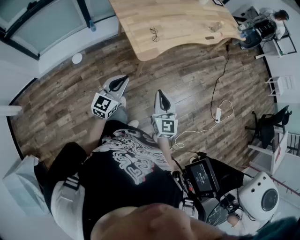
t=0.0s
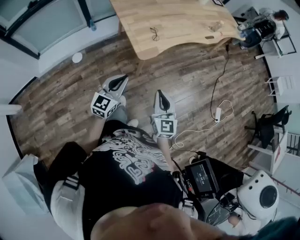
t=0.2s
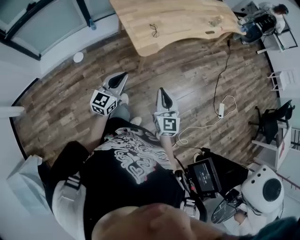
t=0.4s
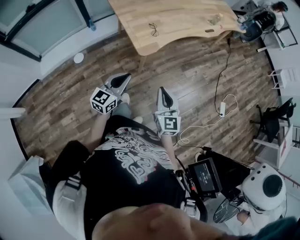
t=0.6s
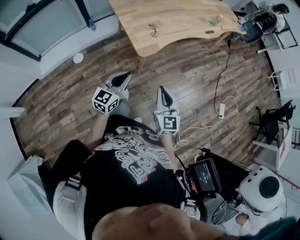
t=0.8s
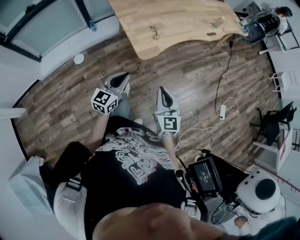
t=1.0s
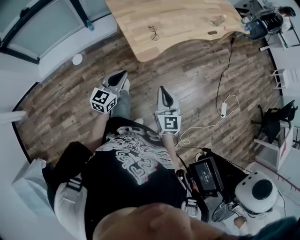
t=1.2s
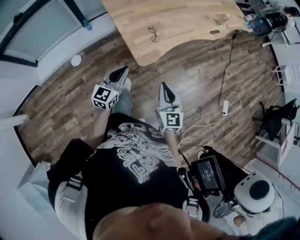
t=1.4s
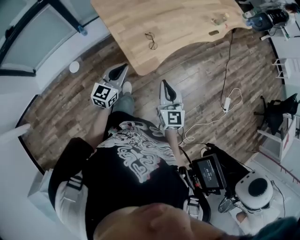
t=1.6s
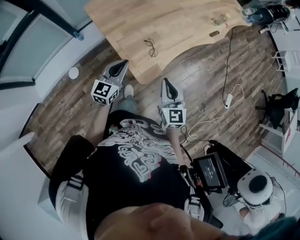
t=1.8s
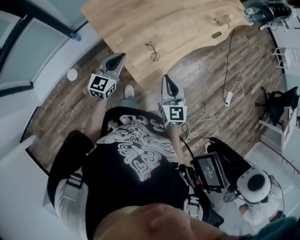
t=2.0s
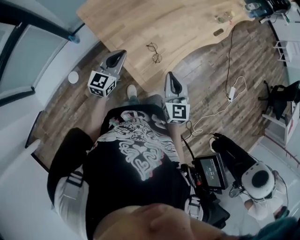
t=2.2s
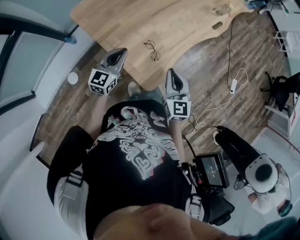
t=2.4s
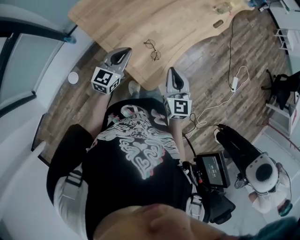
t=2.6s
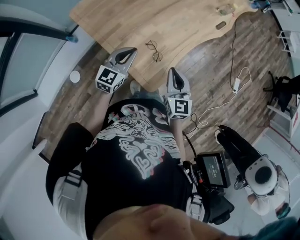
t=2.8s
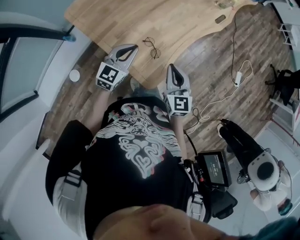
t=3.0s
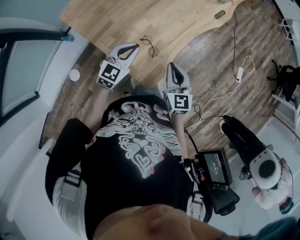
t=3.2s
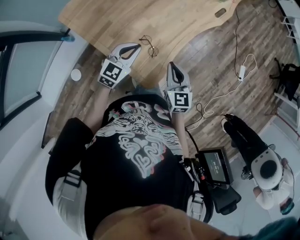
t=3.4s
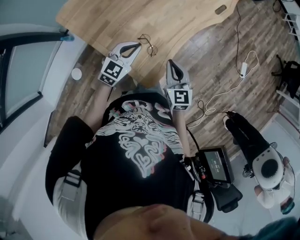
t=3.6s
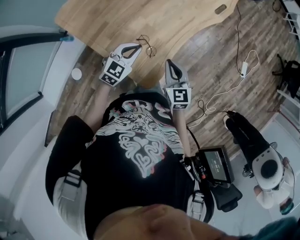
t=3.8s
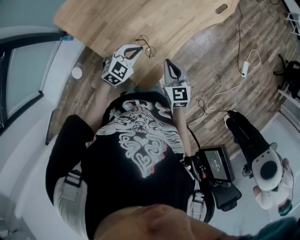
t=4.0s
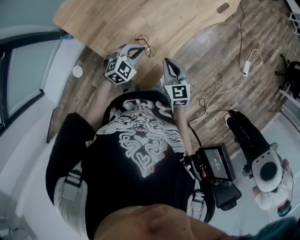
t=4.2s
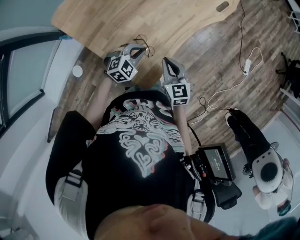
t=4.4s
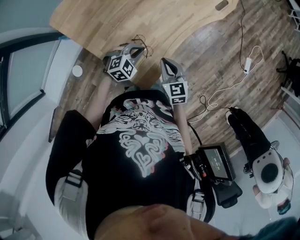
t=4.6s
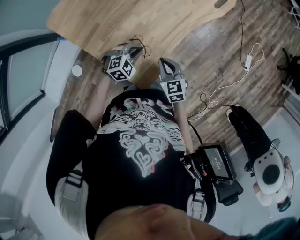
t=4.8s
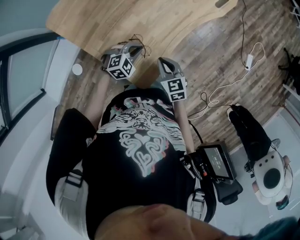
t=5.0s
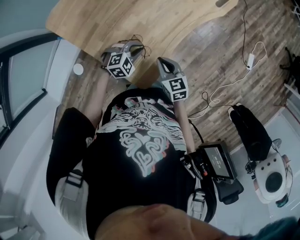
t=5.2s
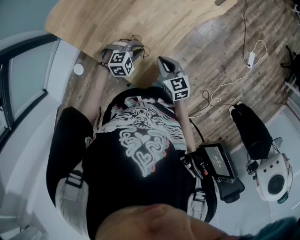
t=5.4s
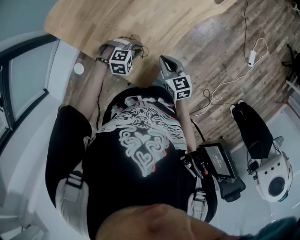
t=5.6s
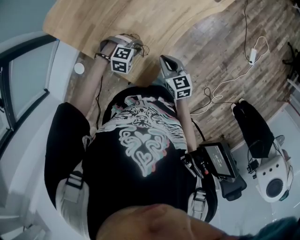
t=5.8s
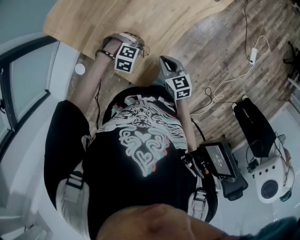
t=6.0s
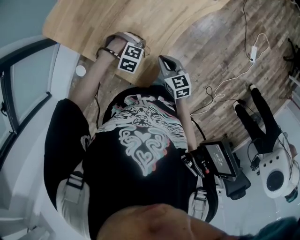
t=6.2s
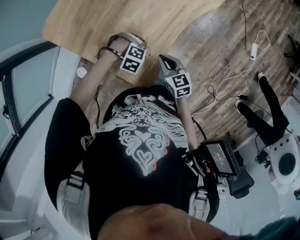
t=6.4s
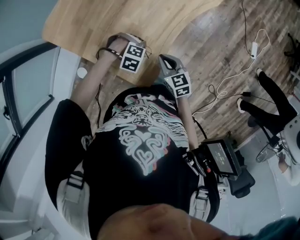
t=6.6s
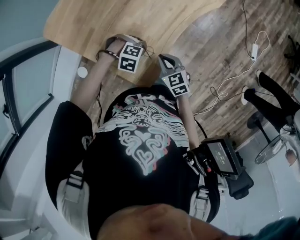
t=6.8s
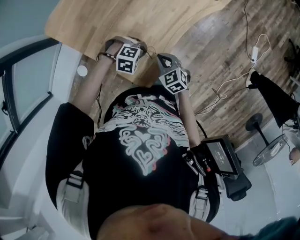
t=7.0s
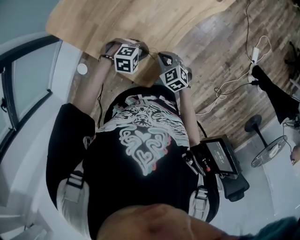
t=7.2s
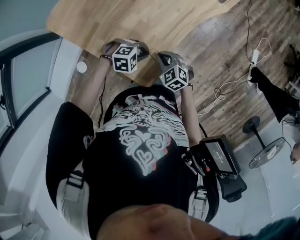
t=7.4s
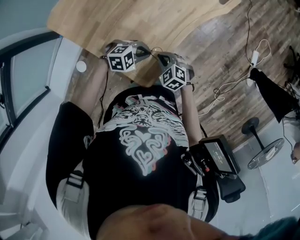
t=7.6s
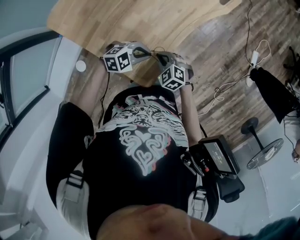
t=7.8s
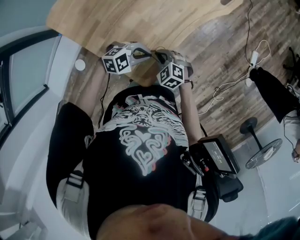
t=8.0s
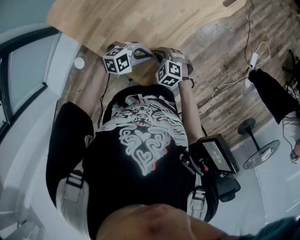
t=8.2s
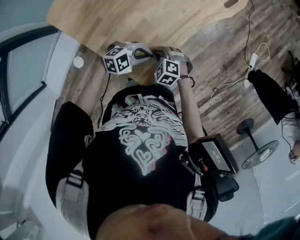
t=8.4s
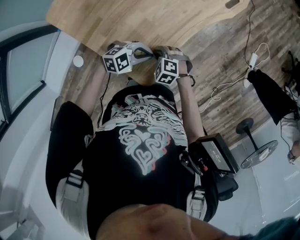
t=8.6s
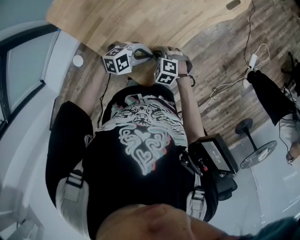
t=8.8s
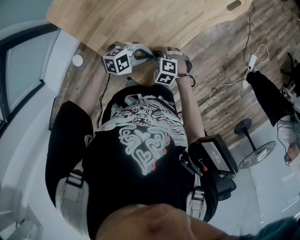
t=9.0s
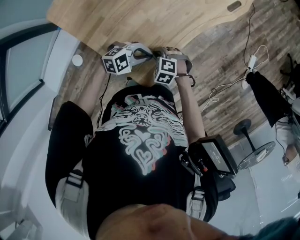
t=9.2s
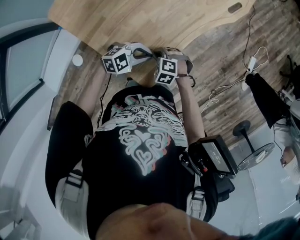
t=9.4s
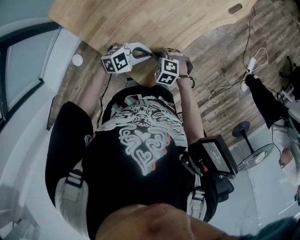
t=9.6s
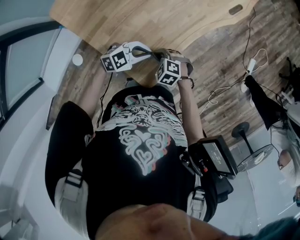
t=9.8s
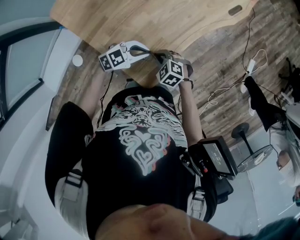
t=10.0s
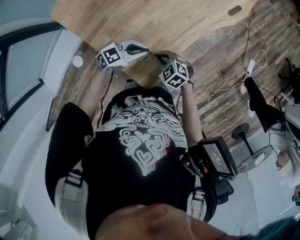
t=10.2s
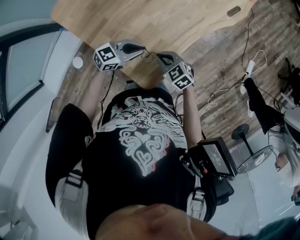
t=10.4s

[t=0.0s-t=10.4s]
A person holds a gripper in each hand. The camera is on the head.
t=0.0s to t=1.4s: The two grippers go approximately 15 cm forward.
t=1.4s to t=3.0s: Both grippers travel together forward, roughly 30 cm. The left gripper changes its angle by approximately 30 degrees.
t=3.0s to t=4.4s: The left gripper goes about 15 cm downward and to the right, and swivels about 40 degrees. Meanwhile the right gripper goes about 10 cm downward and forward.
t=4.4s to t=6.0s: The grippers both shift downward by about 10 cm. The left gripper rotates about 50 degrees.
t=6.0s to t=7.4s: The right gripper changes its angle by roughly 40 degrees, while the left gripper travels upward by roughly 5 cm, and swivels approximately 20 degrees.
t=7.4s to t=9.0s: The left gripper rotates roughly 20 degrees. The right gripper swivels approximately 30 degrees.
t=9.0s to t=10.4s: The right gripper shifts approximately 5 cm upward, and swivels approximately 30 degrees. The left gripper moves roughly 10 cm, and swivels approximately 40 degrees.

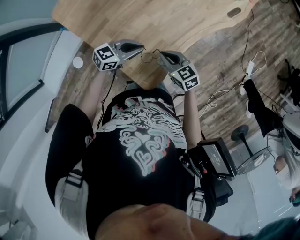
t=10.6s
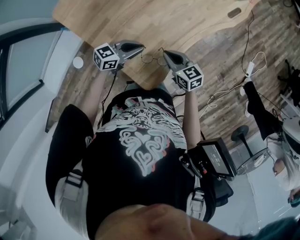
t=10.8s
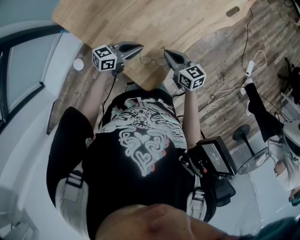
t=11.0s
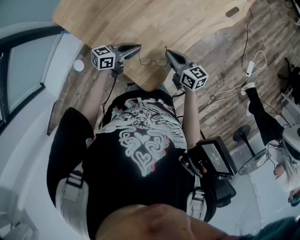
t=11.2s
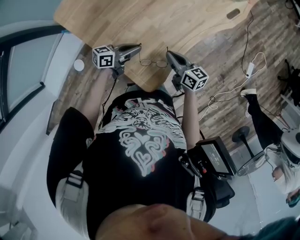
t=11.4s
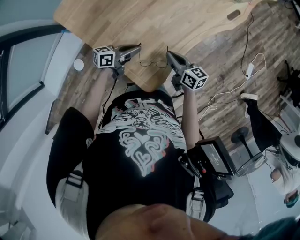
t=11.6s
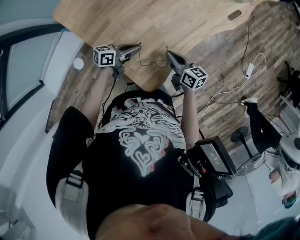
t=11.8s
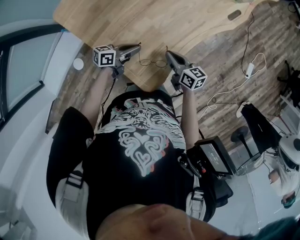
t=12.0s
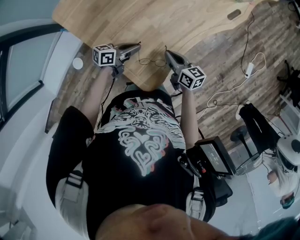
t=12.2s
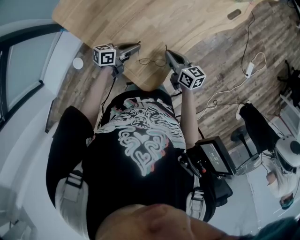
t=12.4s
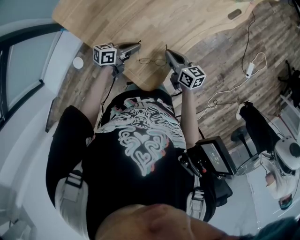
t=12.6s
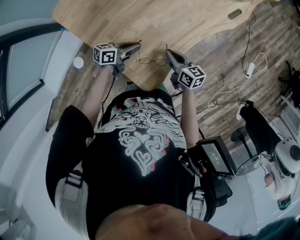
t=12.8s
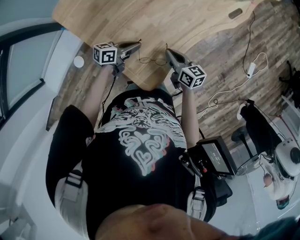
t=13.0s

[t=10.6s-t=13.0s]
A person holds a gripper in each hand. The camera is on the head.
t=10.6s to t=11.8s: The left gripper swivels about 30 degrees. The right gripper changes its angle by about 30 degrees.
t=11.8s to t=13.0s: The two grippers keep their place.

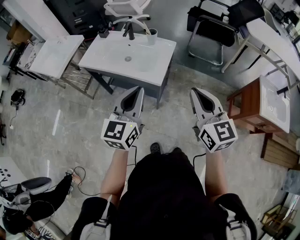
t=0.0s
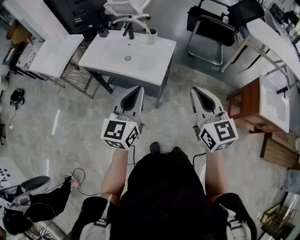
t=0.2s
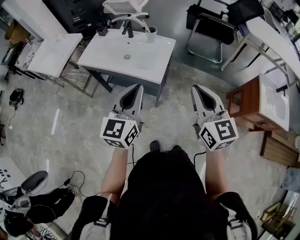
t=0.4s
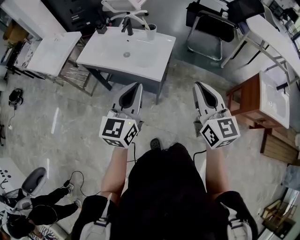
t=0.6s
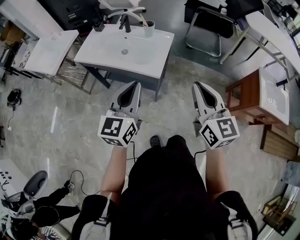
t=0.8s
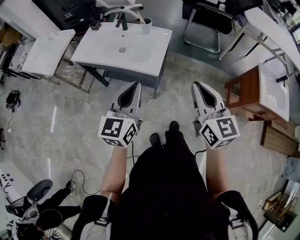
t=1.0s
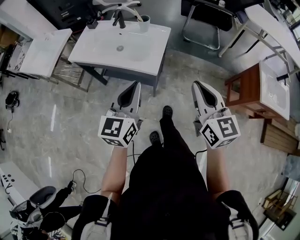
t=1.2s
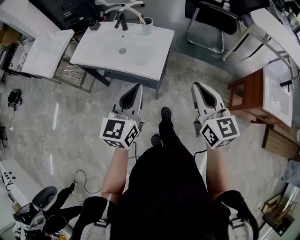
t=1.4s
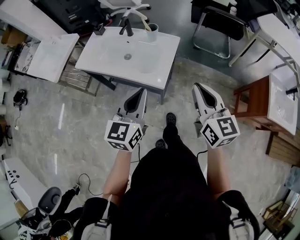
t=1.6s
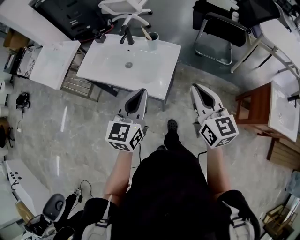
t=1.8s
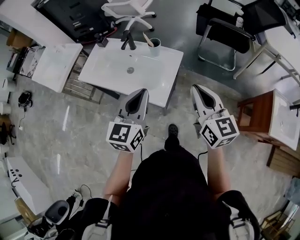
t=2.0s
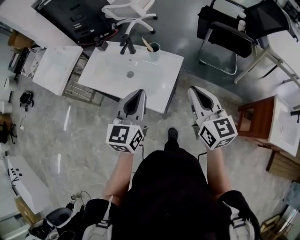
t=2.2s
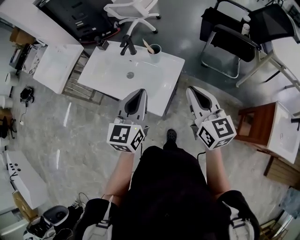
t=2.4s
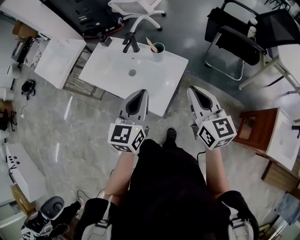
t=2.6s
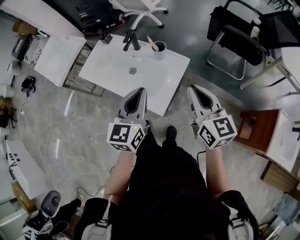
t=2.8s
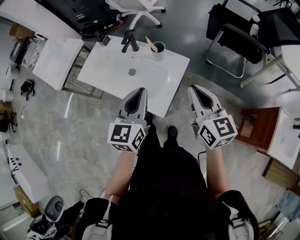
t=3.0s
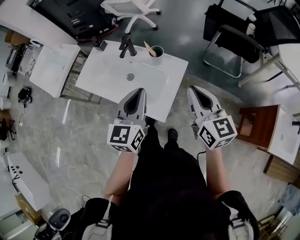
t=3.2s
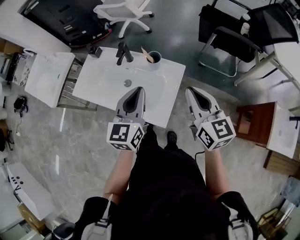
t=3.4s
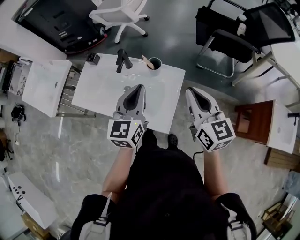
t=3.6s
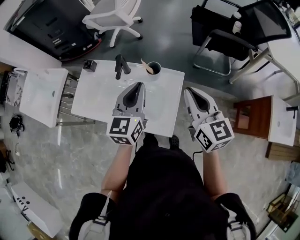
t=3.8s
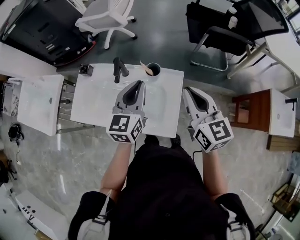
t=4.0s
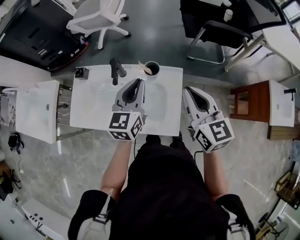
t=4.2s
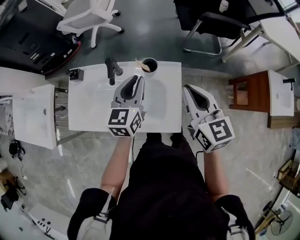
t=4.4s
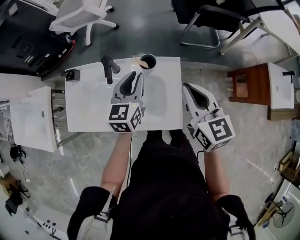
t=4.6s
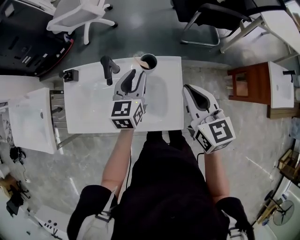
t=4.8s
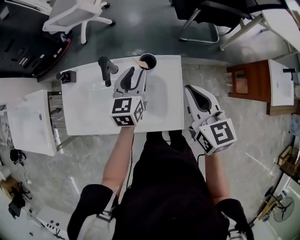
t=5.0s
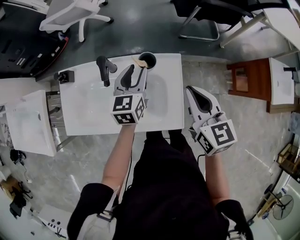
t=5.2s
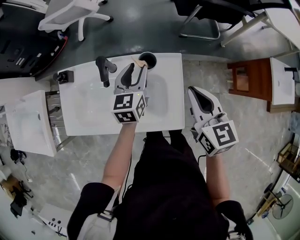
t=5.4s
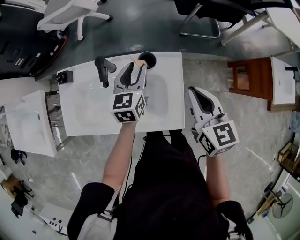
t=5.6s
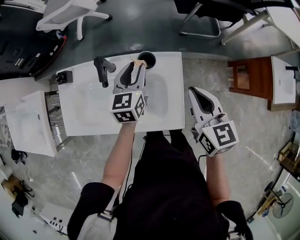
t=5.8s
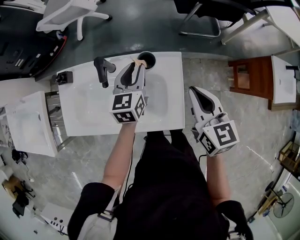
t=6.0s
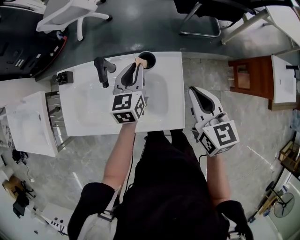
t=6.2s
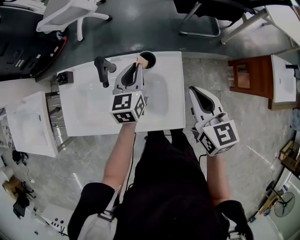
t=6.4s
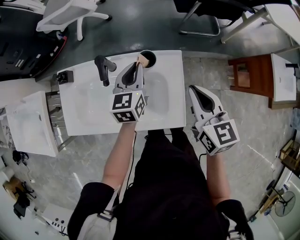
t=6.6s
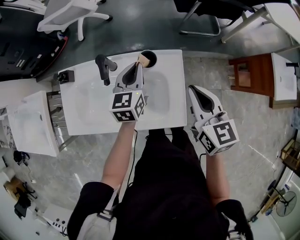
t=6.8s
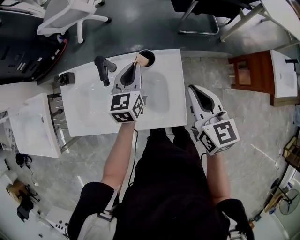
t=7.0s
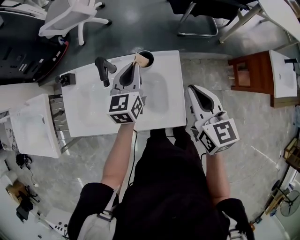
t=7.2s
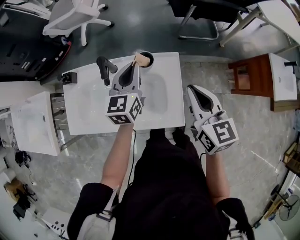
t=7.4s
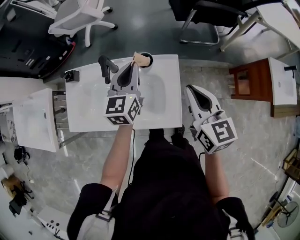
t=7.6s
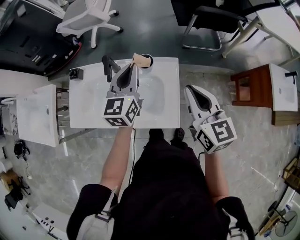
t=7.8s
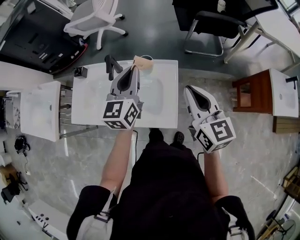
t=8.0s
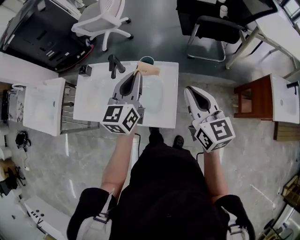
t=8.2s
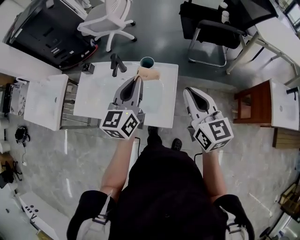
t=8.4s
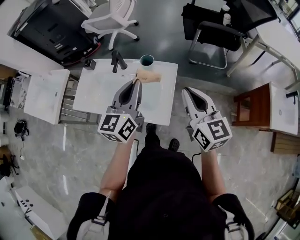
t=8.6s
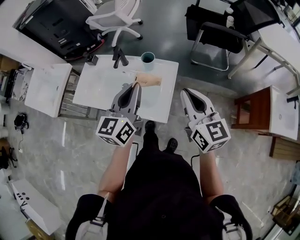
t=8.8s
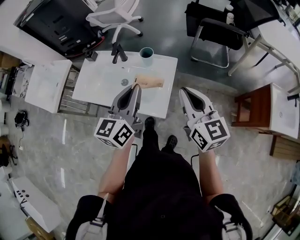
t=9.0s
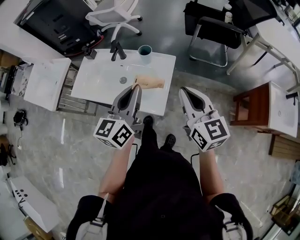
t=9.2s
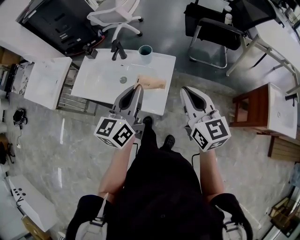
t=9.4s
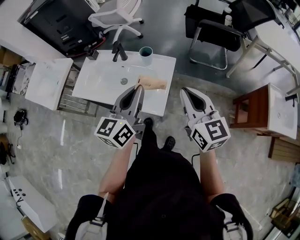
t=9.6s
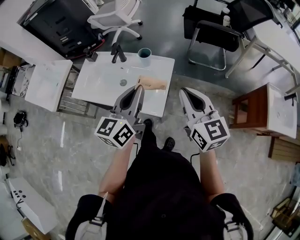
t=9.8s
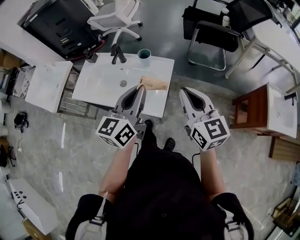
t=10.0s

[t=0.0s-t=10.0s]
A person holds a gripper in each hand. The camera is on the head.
t=0.0s to t=1.4s: The left gripper shifts by some 5 cm. Meanwhile the right gripper travels forward by about 5 cm.
t=1.4s to t=2.8s: Both grippers move forward, approximately 20 cm.
t=2.8s to t=4.2s: The left gripper is displaced forward by roughly 20 cm, and swivels about 20 degrees; the right gripper shifts some 15 cm forward and to the left, and changes its angle by approximately 20 degrees.
t=4.2s to t=5.8s: The left gripper shifts some 15 cm downward and forward, and opens up, while the right gripper heads downward, covering roughly 5 cm.
t=5.8s to t=7.2s: The left gripper closes.
t=7.2s to t=8.6s: The left gripper is displaced backward and upward by some 25 cm, while the right gripper heads upward, backward and to the right, covering some 15 cm, and swivels about 20 degrees.
t=8.6s to t=10.0s: The right gripper is displaced backward by some 5 cm; the left gripper moves backward, about 10 cm.

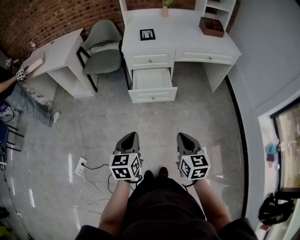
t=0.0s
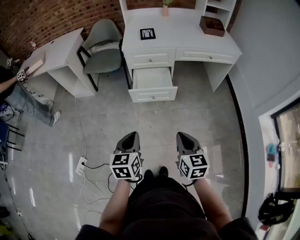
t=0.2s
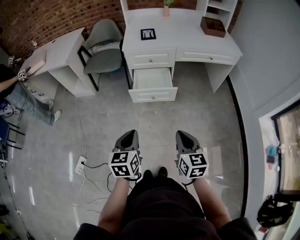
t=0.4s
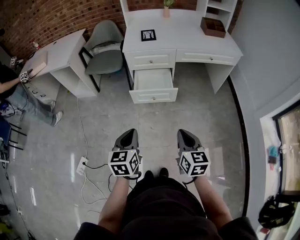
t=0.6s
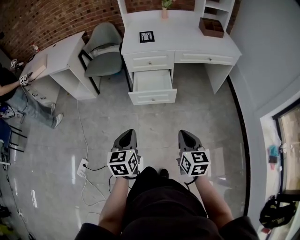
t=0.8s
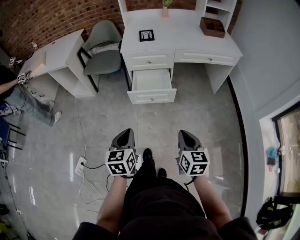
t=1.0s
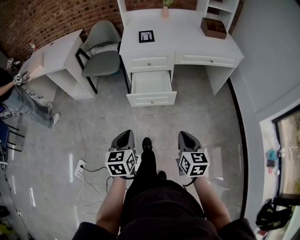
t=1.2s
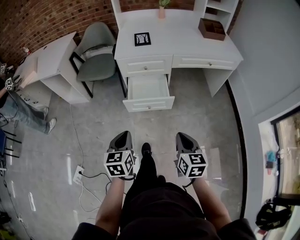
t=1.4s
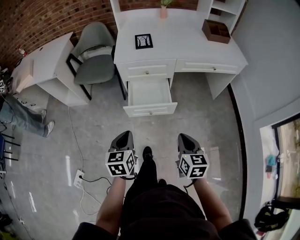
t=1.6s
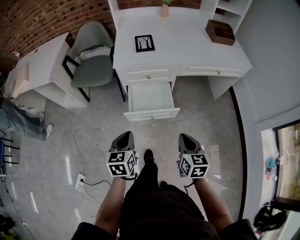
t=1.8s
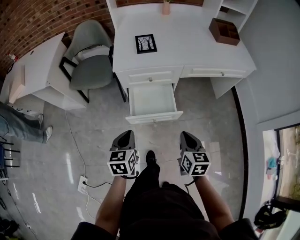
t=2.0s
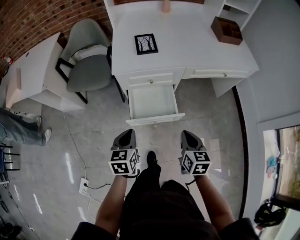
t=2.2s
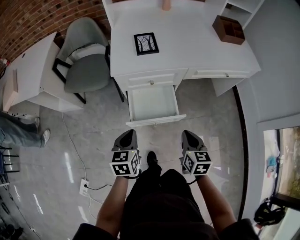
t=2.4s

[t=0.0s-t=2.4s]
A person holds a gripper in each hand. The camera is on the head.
t=0.0s to t=1.2s: The grippers both shift forward by roughly 5 cm.
t=1.2s to t=2.4s: Both grippers travel together forward, approximately 30 cm.
